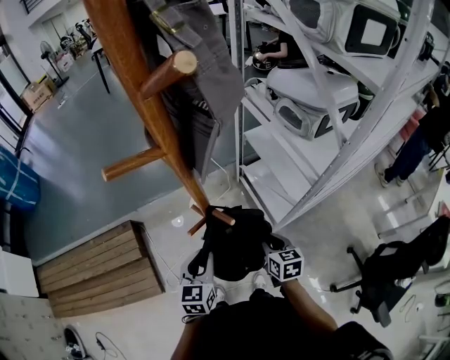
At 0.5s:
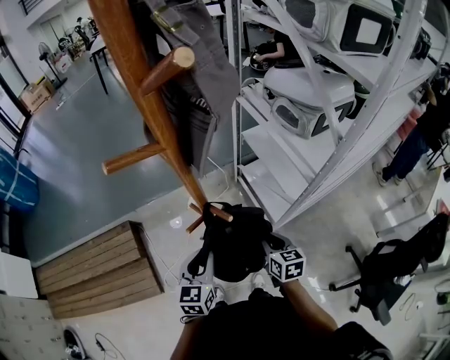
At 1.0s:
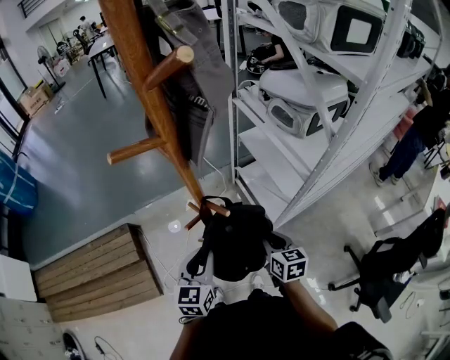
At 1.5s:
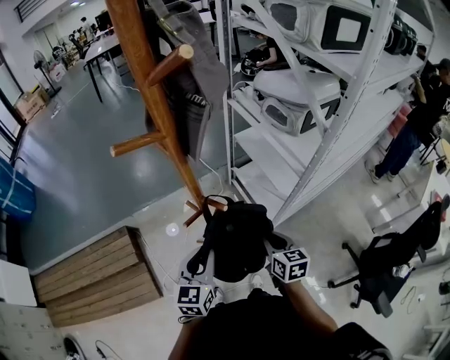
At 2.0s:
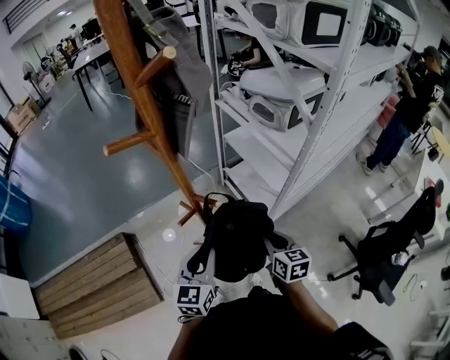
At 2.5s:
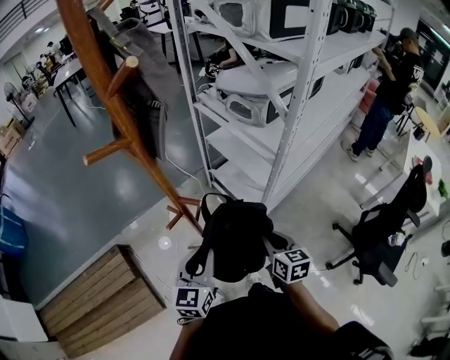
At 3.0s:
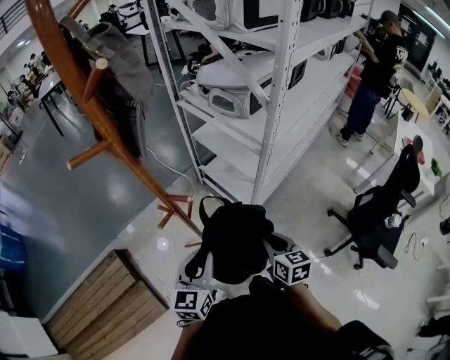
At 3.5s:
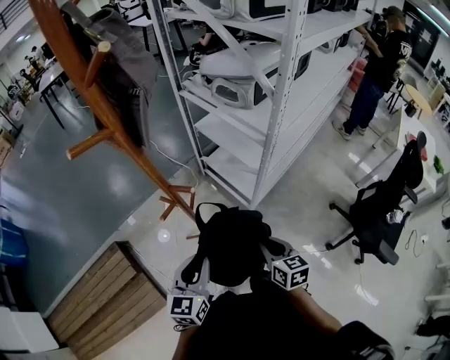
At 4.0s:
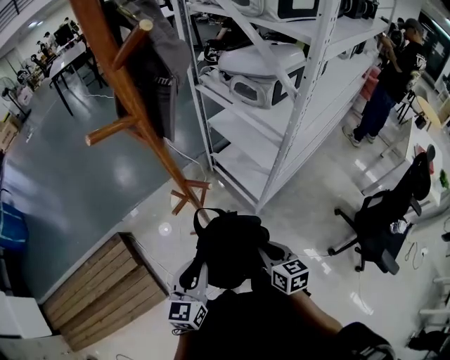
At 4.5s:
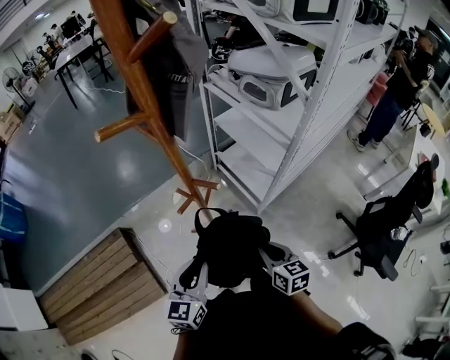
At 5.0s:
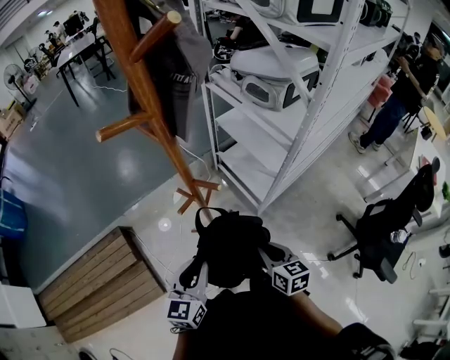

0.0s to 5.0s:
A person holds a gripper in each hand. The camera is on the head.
0.0s to 2.5s: The left gripper heads upward and to the right, covering some 10 cm, and changes its angle by about 20 degrees. The right gripper moves backward, upward and to the right, some 15 cm.
2.5s to 5.0s: Both grippers move to the left and backward, about 10 cm.

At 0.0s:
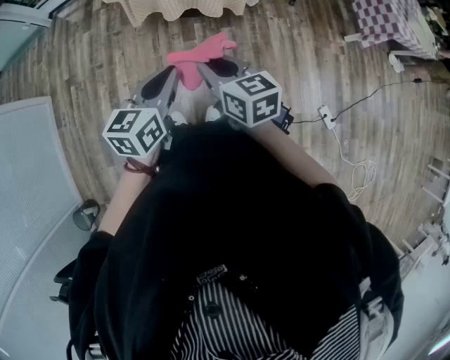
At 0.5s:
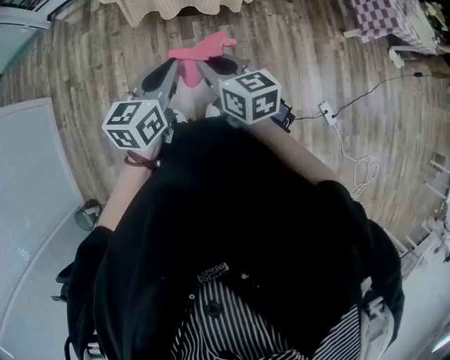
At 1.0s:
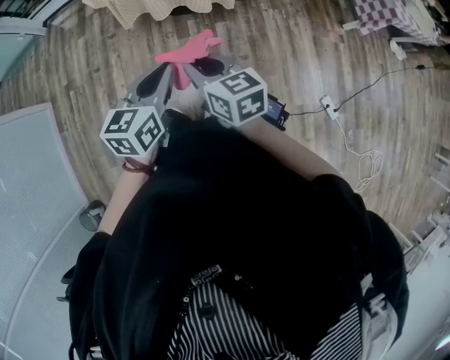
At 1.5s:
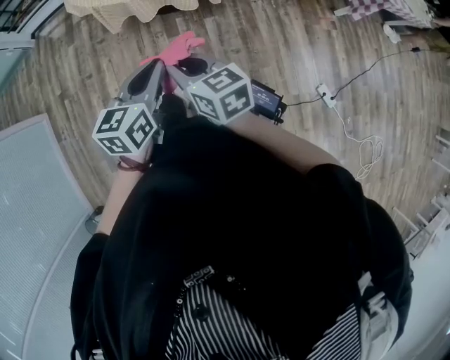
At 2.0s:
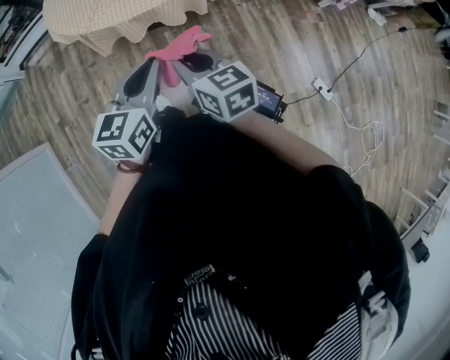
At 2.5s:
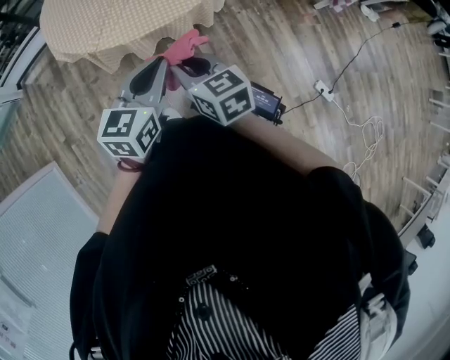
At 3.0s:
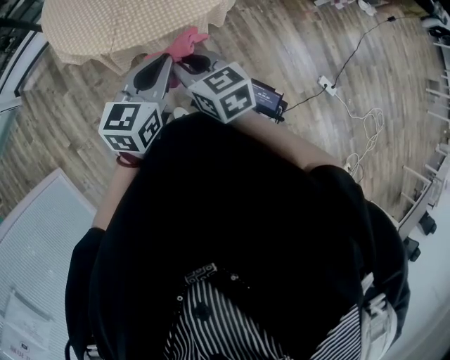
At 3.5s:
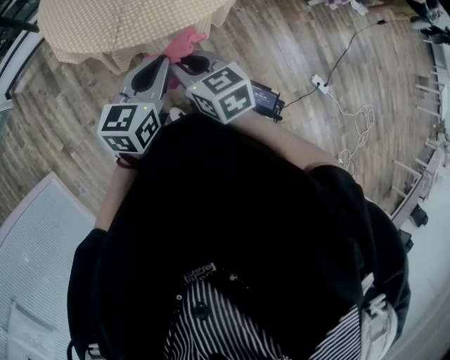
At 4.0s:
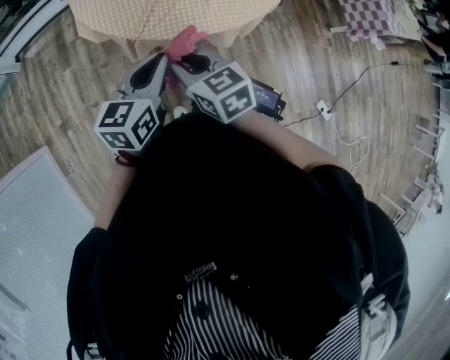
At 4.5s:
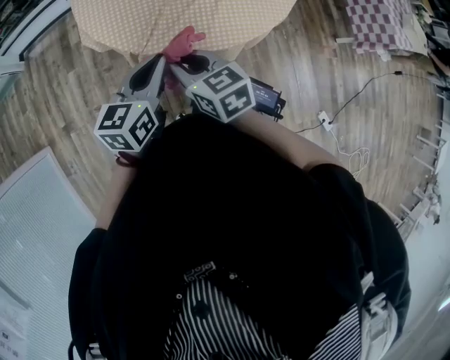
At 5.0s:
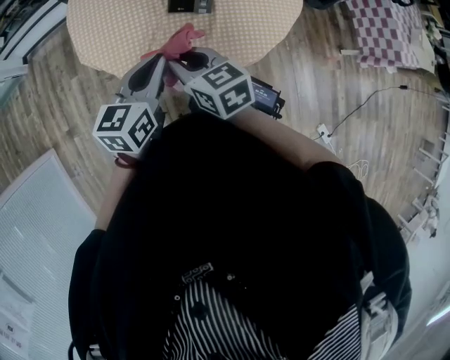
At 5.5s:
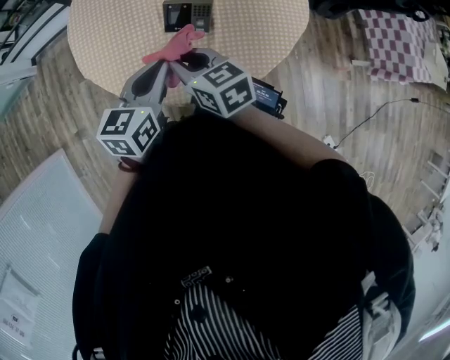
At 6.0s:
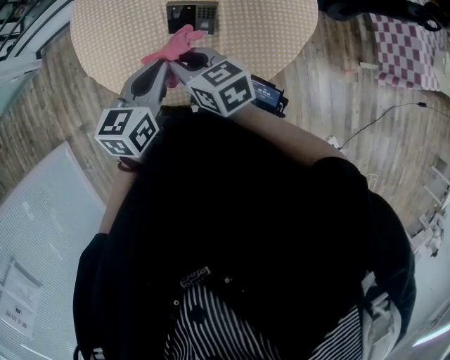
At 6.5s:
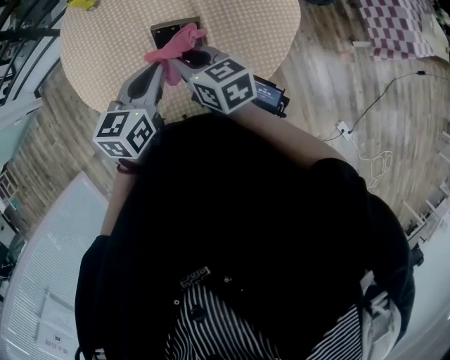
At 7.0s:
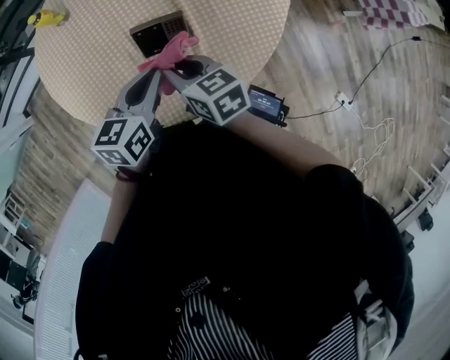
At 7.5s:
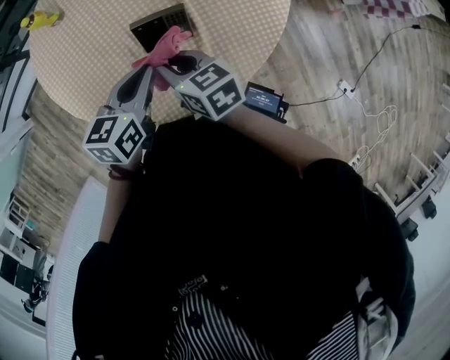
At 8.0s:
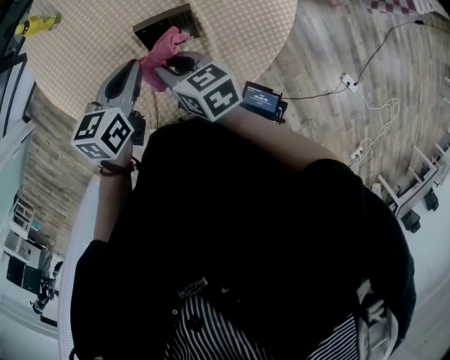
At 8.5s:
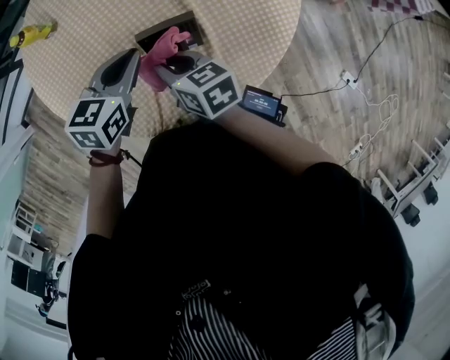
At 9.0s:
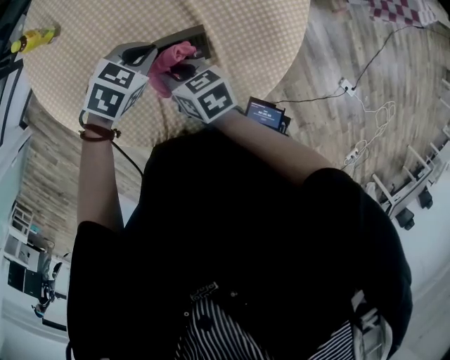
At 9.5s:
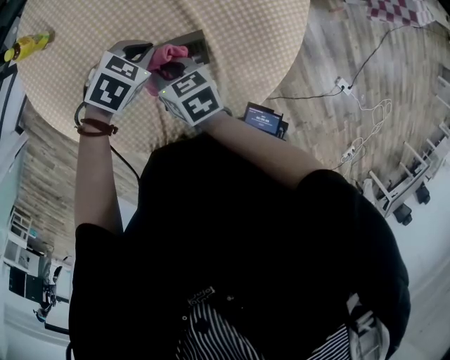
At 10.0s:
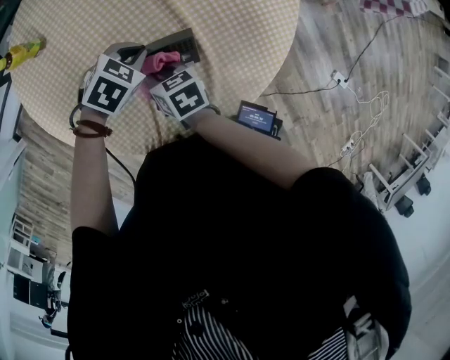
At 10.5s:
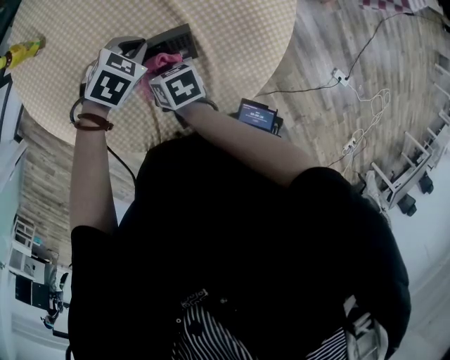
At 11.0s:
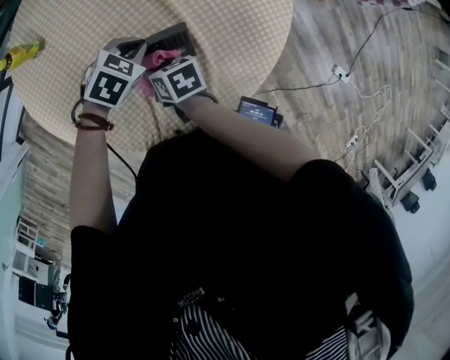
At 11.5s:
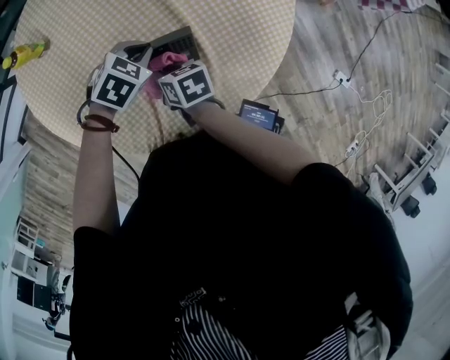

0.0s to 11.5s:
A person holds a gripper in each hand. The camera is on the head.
0.0s to 2.0s: The grippers both shift forward and to the right by about 10 cm.
2.0s to 4.0s: Both grippers move to the left and forward, approximately 35 cm.
4.0s to 6.0s: The left gripper is displaced forward and to the right by some 30 cm. The right gripper goes approximately 30 cm forward.
6.0s to 7.5s: The right gripper moves forward, to the right and downward, approximately 15 cm, and rotates roughly 20 degrees; the left gripper goes some 15 cm forward, downward and to the right, and rotates roughly 20 degrees.
7.5s to 9.5s: Both grippers move downward and forward, some 15 cm. The left gripper rotates some 50 degrees.
9.5s to 11.5s: The right gripper moves downward, approximately 5 cm.

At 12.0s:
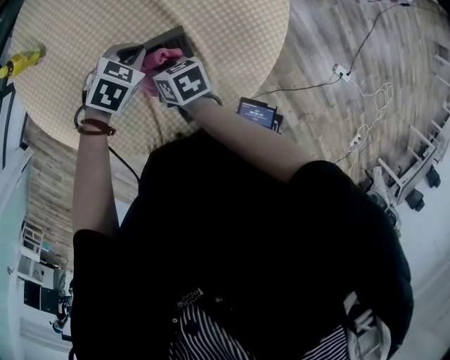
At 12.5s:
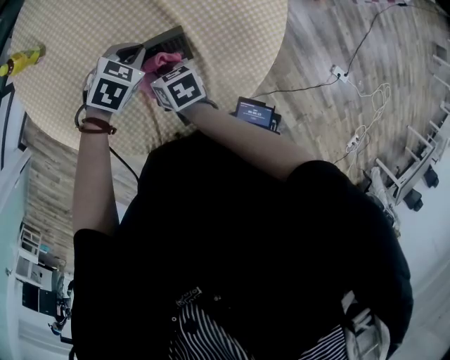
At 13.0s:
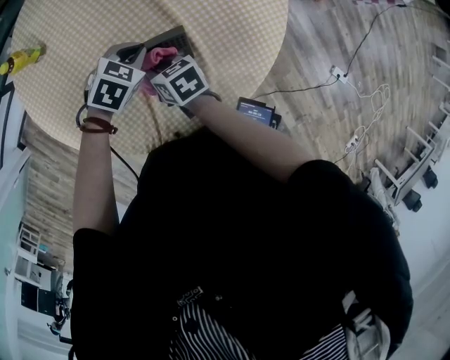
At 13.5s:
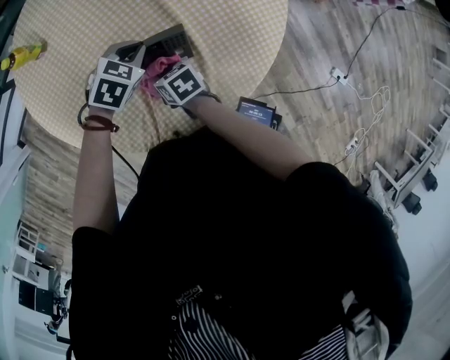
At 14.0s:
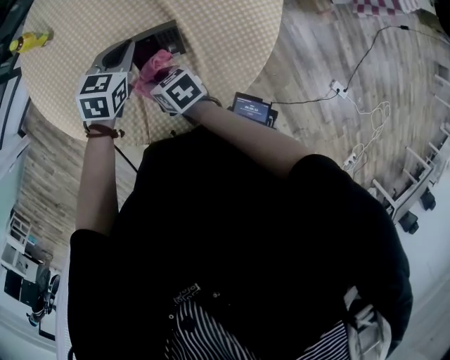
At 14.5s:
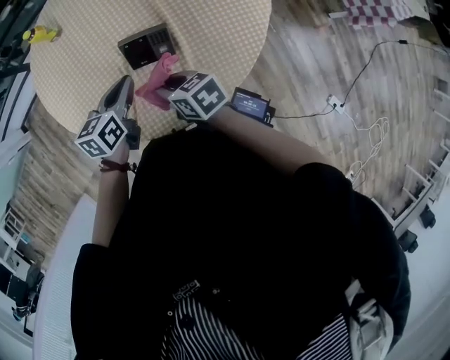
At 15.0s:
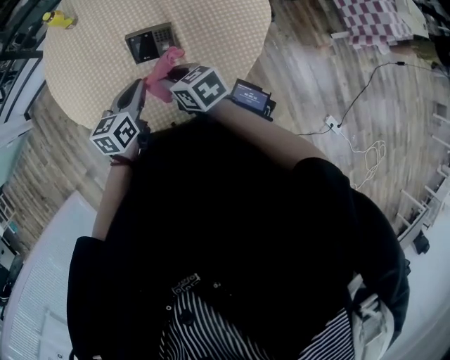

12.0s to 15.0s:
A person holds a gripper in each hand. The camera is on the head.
12.0s to 13.5s: The right gripper moves approximately 5 cm.
13.5s to 15.0s: The left gripper shifts approximately 25 cm backward, to the left and upward, and points its fingers about 30 degrees further upward; the right gripper is displaced upward and backward by some 25 cm, and rotates approximately 30 degrees.

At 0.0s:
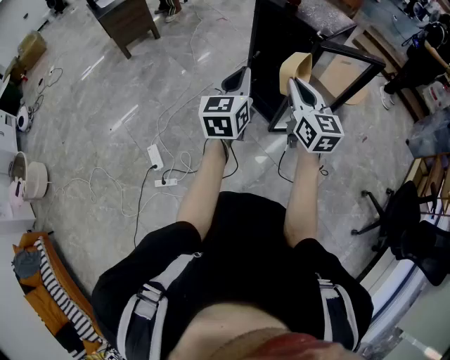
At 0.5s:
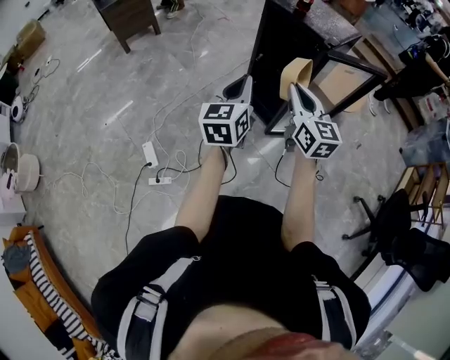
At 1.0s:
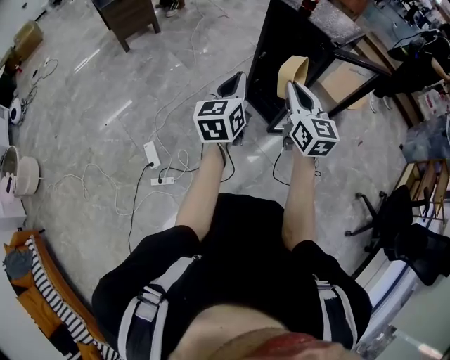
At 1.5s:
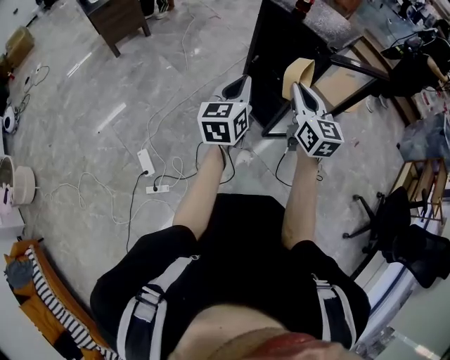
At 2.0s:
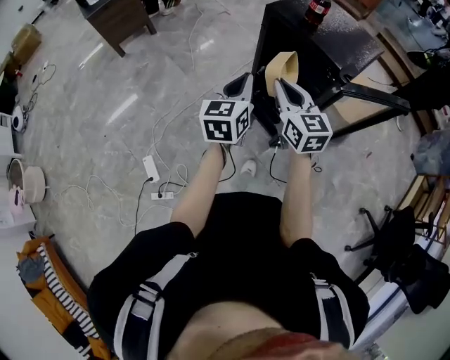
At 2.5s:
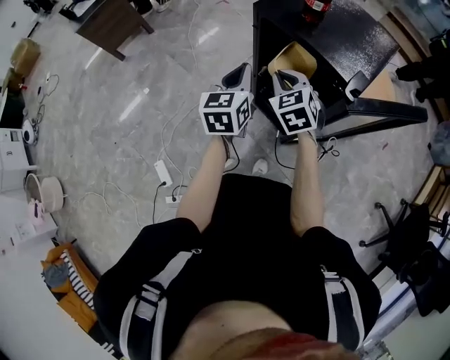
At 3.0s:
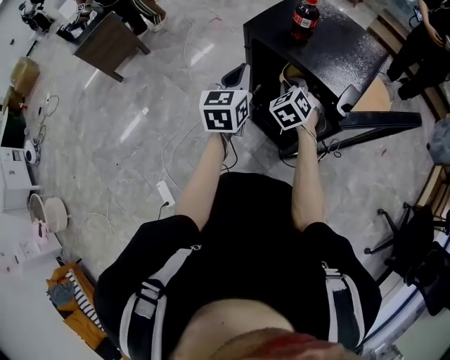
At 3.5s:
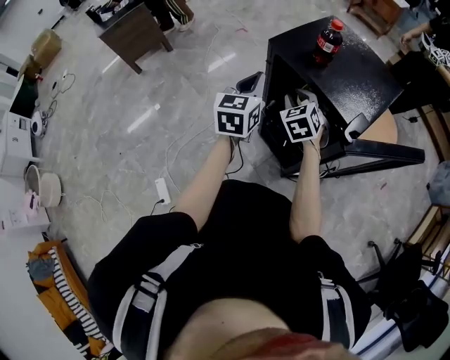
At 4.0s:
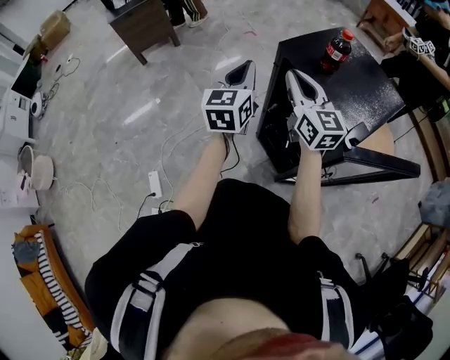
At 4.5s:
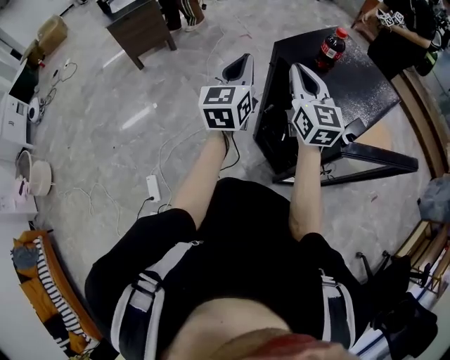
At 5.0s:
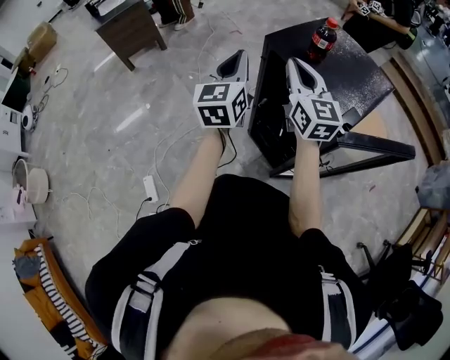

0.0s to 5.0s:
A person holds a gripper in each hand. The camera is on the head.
0.0s to 2.5s: Both grippers move forward, roughly 35 cm. The right gripper tilts its fingers some 30 degrees downward.
2.5s to 5.0s: The grippers both shift upward by some 15 cm. The right gripper points its fingers some 40 degrees further upward.

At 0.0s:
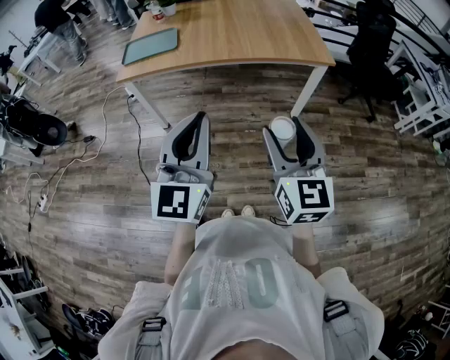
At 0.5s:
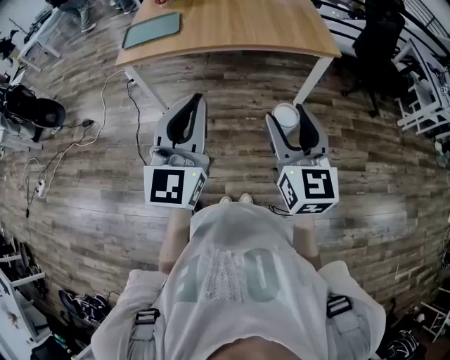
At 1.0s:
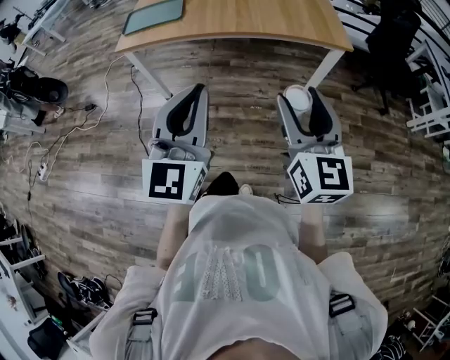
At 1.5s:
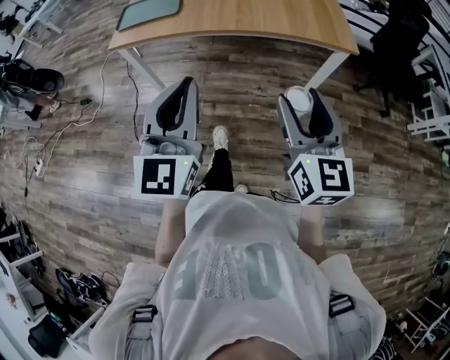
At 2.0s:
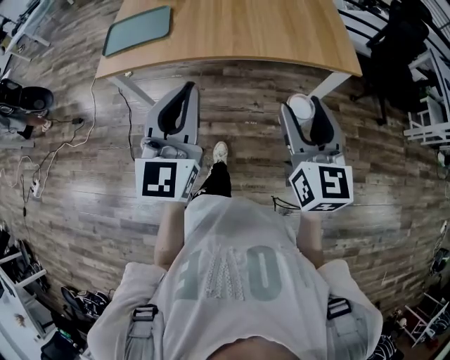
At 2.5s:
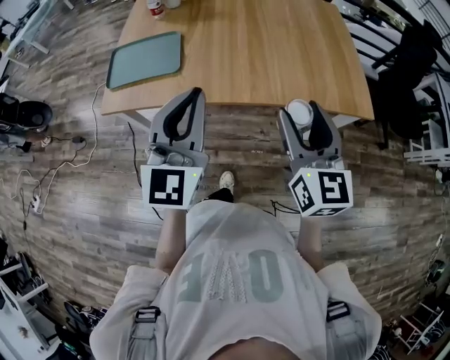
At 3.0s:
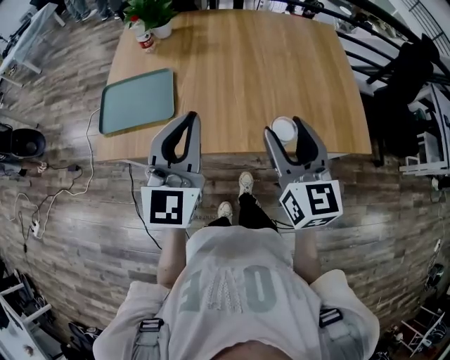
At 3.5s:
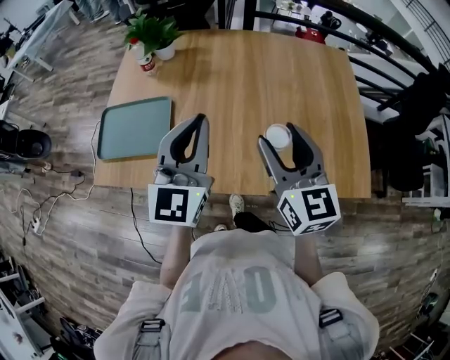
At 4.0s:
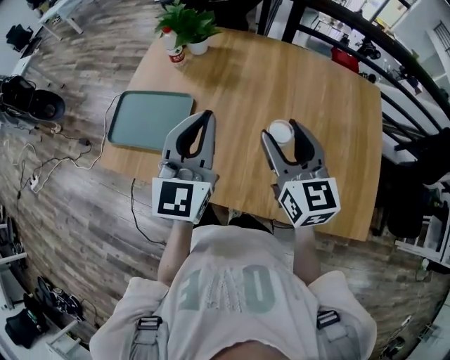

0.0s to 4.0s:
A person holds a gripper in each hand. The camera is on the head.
0.0s to 2.0s: Both grippers travel together forward, roughly 25 cm.
2.0s to 4.0s: Both grippers are carried forward, approximately 50 cm. The right gripper turns by about 20 degrees.
